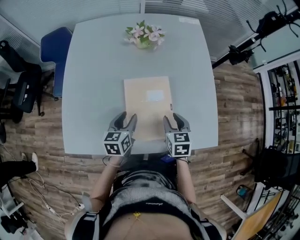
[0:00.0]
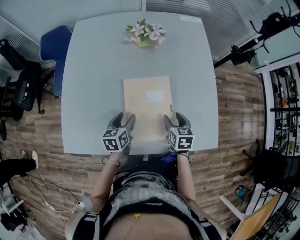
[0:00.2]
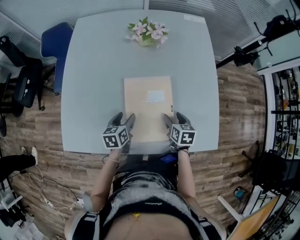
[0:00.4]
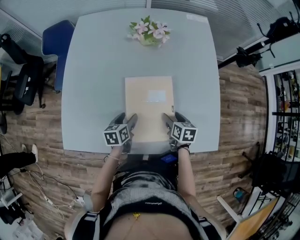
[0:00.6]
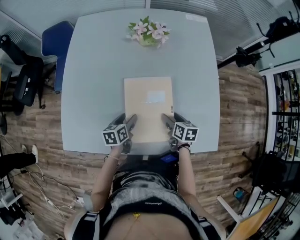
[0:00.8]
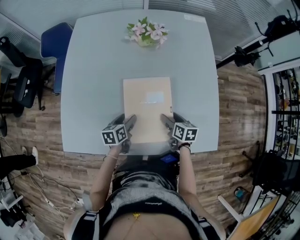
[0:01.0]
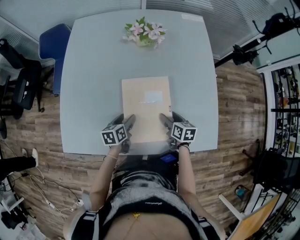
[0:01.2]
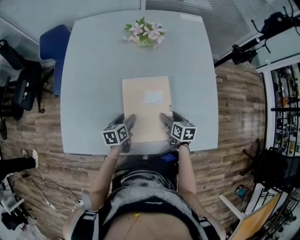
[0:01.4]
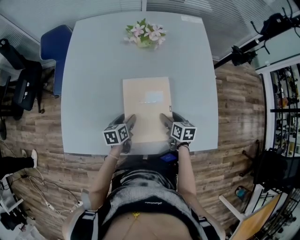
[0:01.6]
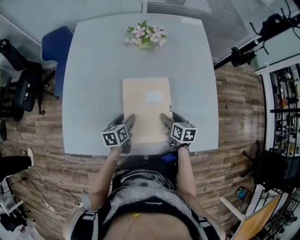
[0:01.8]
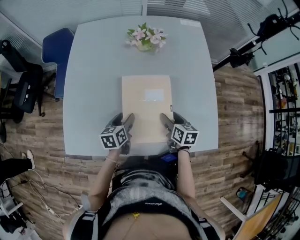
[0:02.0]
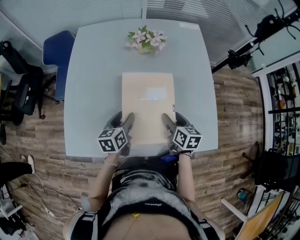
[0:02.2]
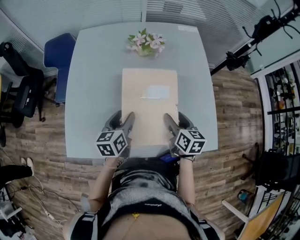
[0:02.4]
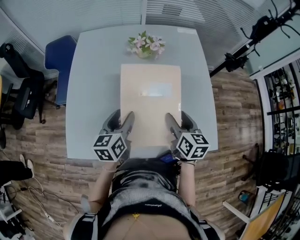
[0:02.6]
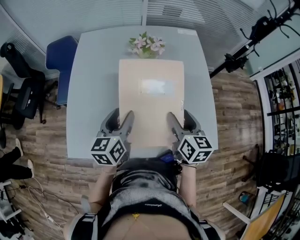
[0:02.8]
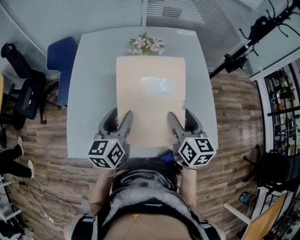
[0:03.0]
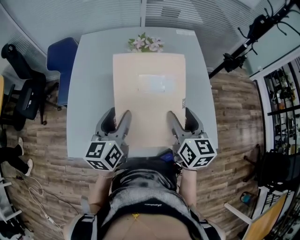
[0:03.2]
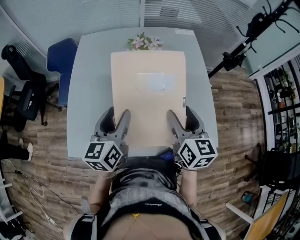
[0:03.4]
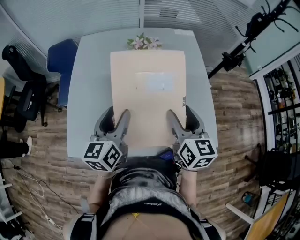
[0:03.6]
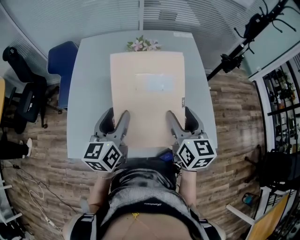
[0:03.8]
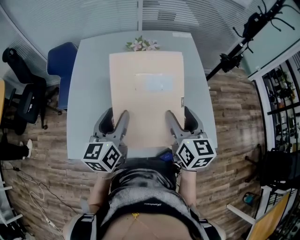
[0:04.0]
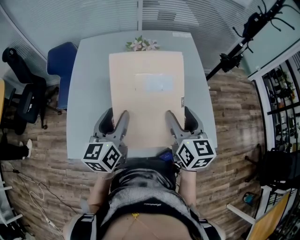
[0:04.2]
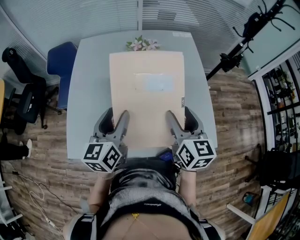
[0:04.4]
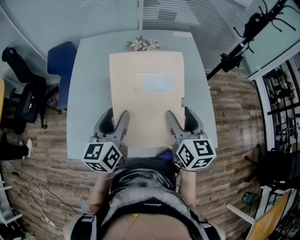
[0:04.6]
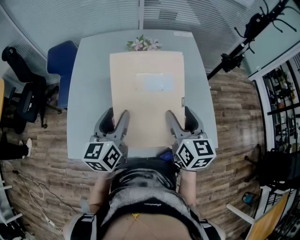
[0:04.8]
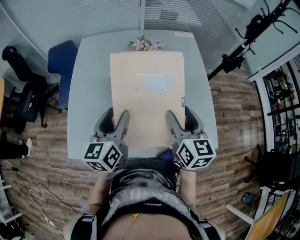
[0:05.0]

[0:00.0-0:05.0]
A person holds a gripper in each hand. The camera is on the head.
0:00.0 to 0:01.6: Both grippers move downward, some 10 cm. The right gripper turns by roughly 30 degrees, and opens.
0:01.6 to 0:03.4: The grippers both shift upward by some 30 cm. The right gripper changes its angle by roughly 30 degrees. The left gripper tilts its fingers about 30 degrees upward.
0:03.4 to 0:05.0: The two grippers keep their place.

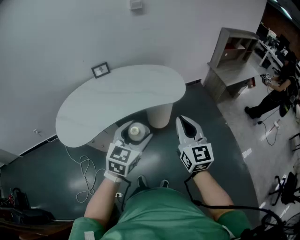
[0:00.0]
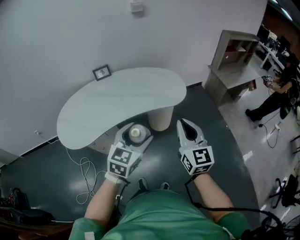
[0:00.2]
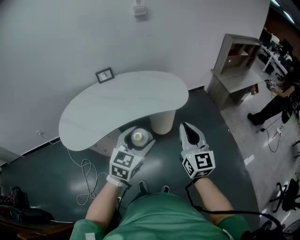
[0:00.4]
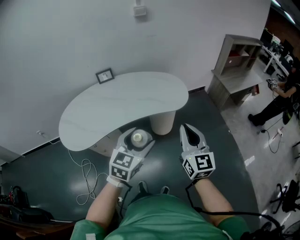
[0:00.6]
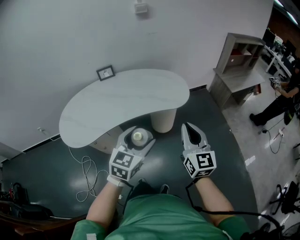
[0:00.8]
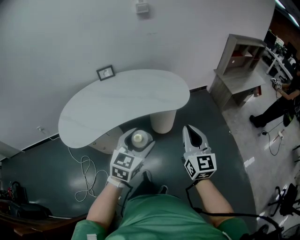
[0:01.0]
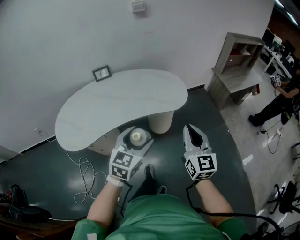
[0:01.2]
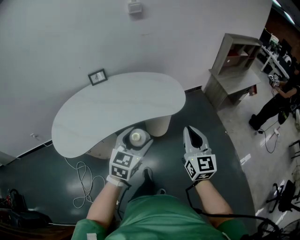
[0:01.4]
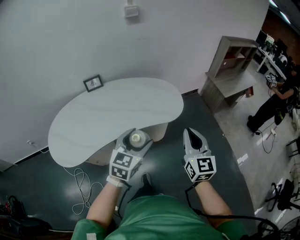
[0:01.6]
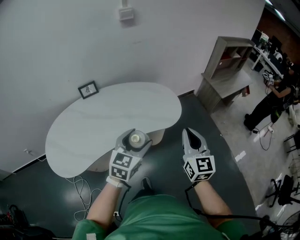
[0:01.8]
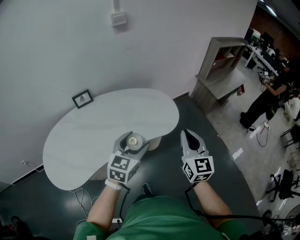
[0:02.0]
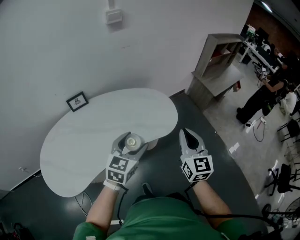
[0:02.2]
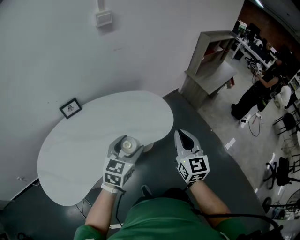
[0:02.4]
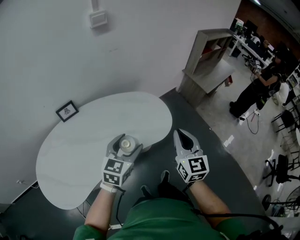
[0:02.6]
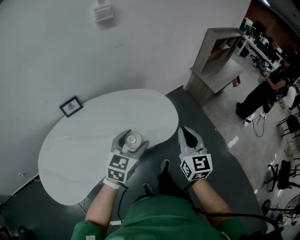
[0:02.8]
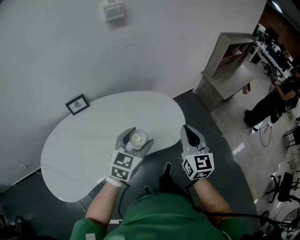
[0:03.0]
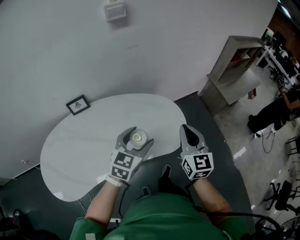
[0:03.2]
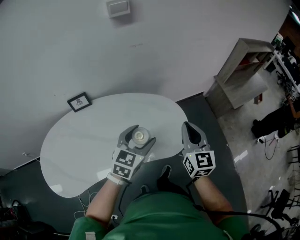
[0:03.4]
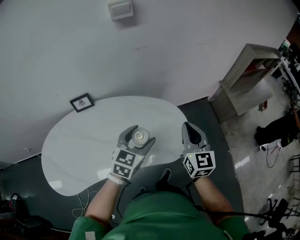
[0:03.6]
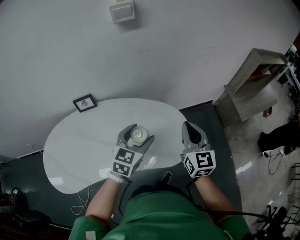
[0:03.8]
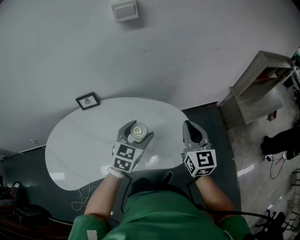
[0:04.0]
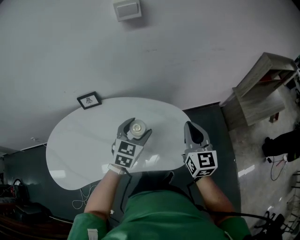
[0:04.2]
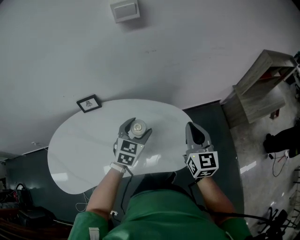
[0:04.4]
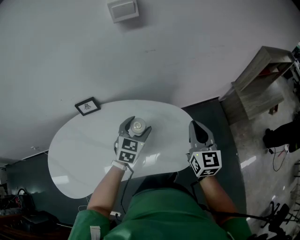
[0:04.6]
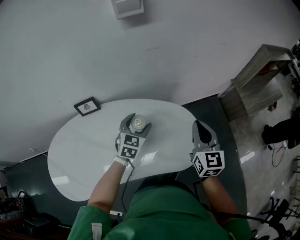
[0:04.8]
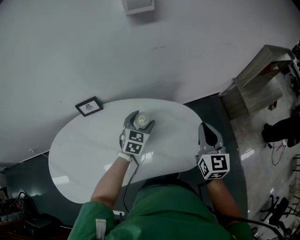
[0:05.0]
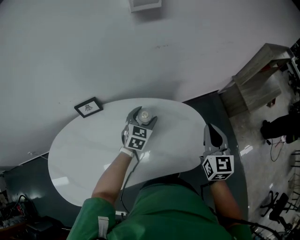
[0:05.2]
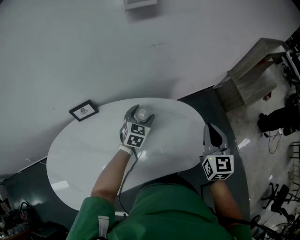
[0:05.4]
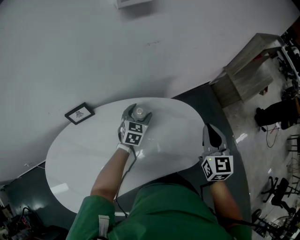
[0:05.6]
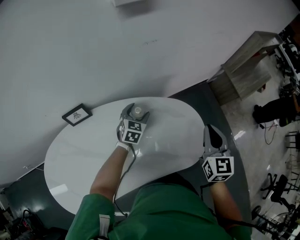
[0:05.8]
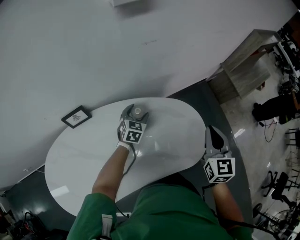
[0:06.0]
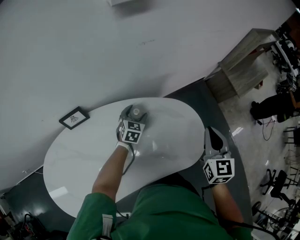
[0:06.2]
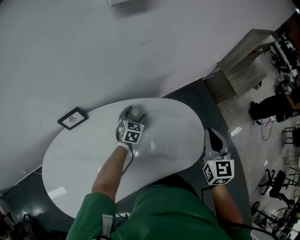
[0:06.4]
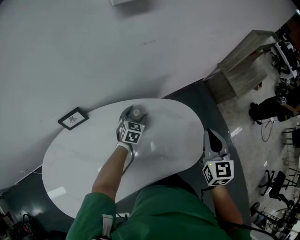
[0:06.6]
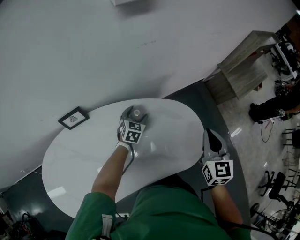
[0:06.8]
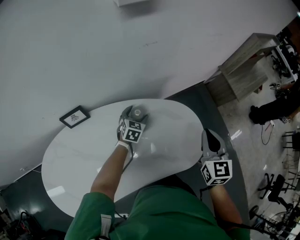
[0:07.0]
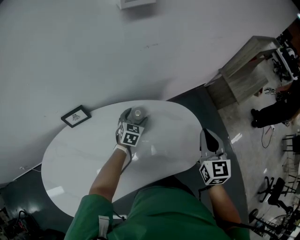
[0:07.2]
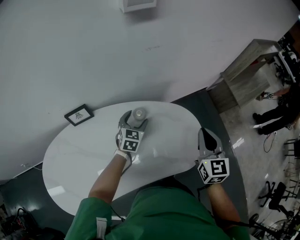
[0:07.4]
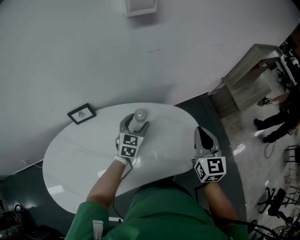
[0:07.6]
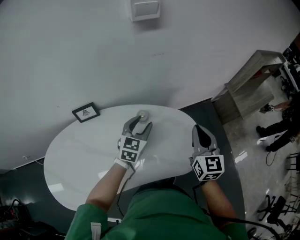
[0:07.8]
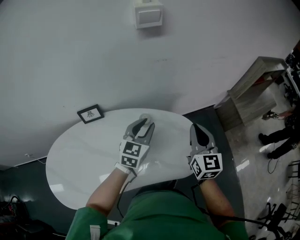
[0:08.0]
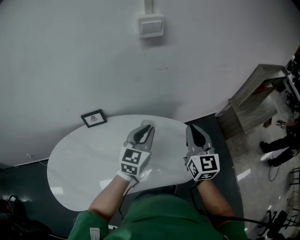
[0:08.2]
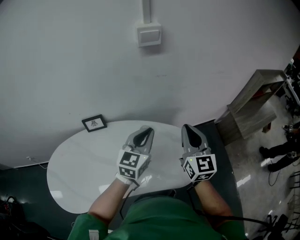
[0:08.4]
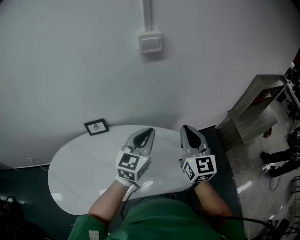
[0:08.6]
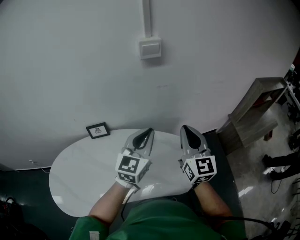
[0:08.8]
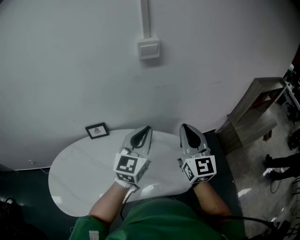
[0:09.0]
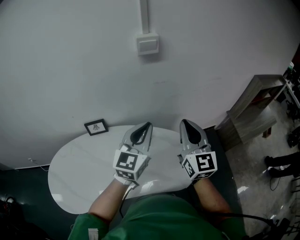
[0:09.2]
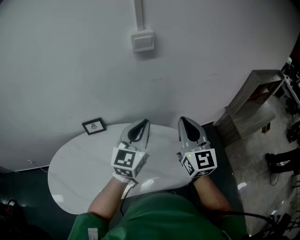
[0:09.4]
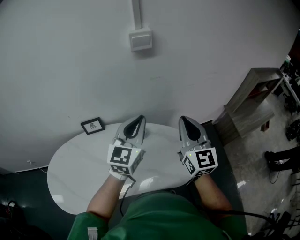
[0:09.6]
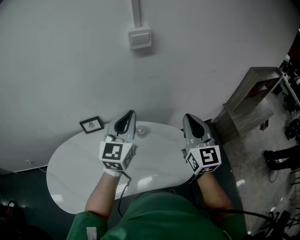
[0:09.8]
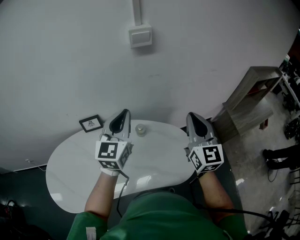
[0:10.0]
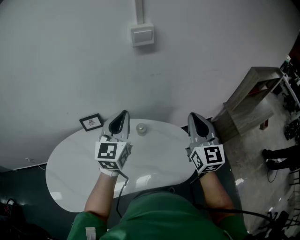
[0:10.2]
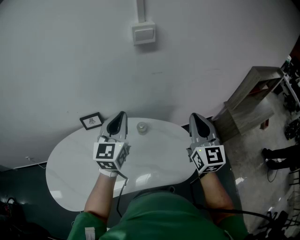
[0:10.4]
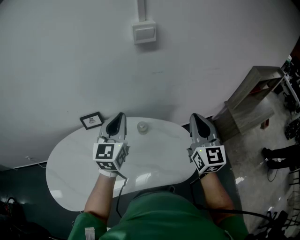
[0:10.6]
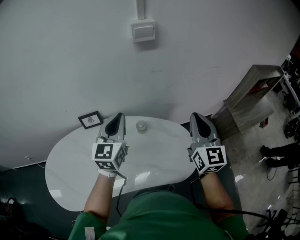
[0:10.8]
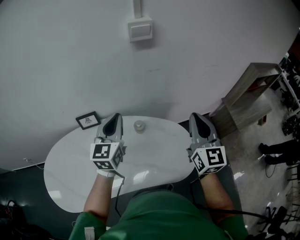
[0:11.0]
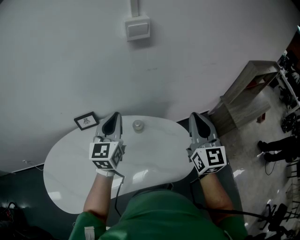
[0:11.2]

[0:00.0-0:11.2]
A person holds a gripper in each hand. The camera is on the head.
0:00.0 to 0:01.6: Both grippers move forward, about 10 cm.
0:01.6 to 0:03.2: Both grippers travel together forward, about 25 cm.
0:03.2 to 0:04.8: The left gripper travels forward, downward and to the left by about 25 cm. The right gripper goes approximately 15 cm forward.
0:04.8 to 0:06.4: The left gripper shifts about 20 cm downward and forward.
0:06.4 to 0:08.0: The left gripper goes some 25 cm upward and backward, swivels about 20 degrees, and closes up; the right gripper shifts approximately 10 cm upward and to the left.
0:08.0 to 0:09.6: The two grippers go about 15 cm upward.
0:09.6 to 0:11.2: The left gripper goes roughly 10 cm to the left.

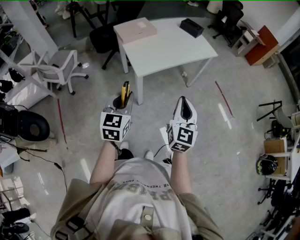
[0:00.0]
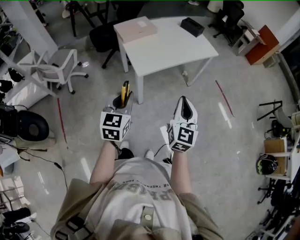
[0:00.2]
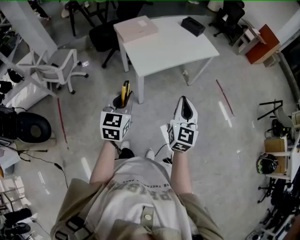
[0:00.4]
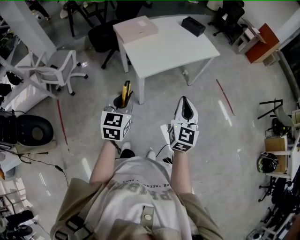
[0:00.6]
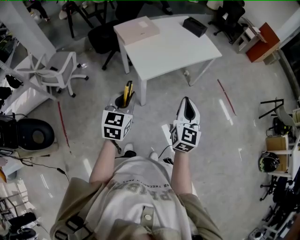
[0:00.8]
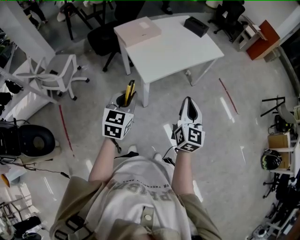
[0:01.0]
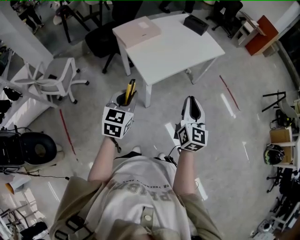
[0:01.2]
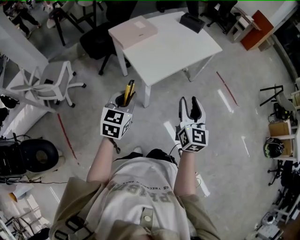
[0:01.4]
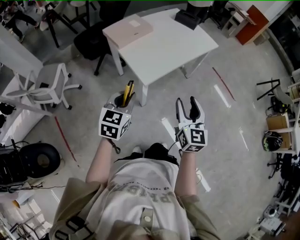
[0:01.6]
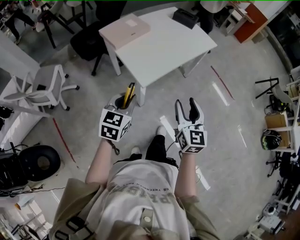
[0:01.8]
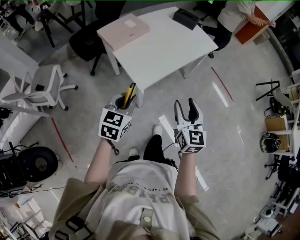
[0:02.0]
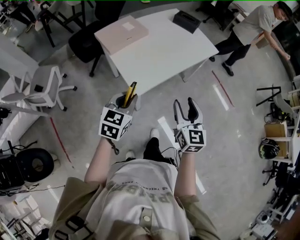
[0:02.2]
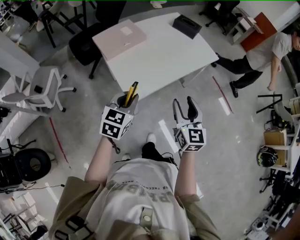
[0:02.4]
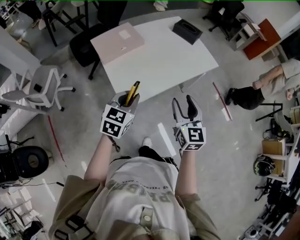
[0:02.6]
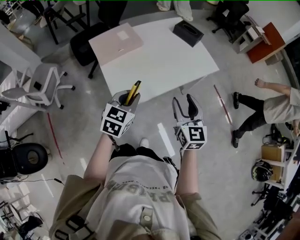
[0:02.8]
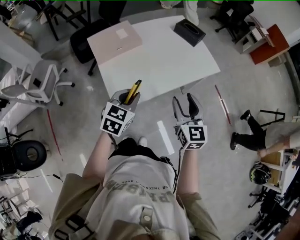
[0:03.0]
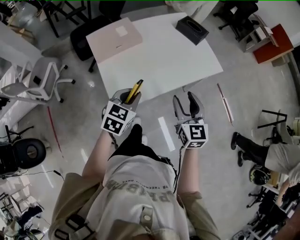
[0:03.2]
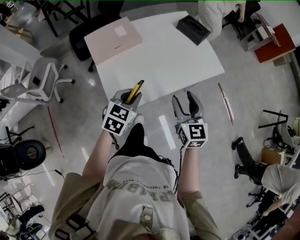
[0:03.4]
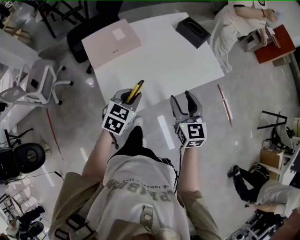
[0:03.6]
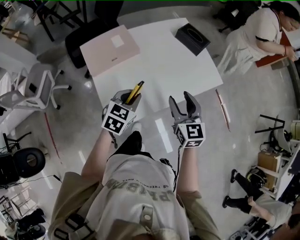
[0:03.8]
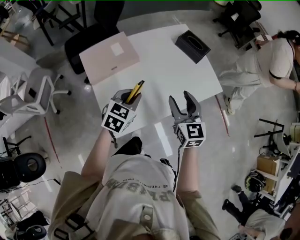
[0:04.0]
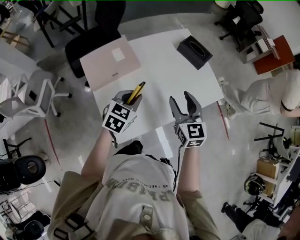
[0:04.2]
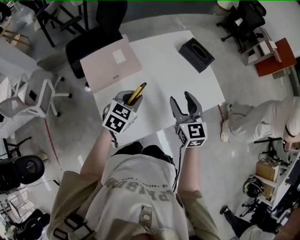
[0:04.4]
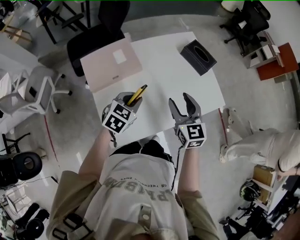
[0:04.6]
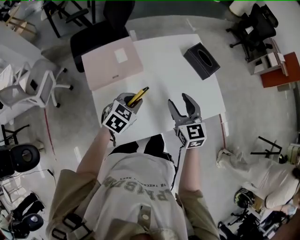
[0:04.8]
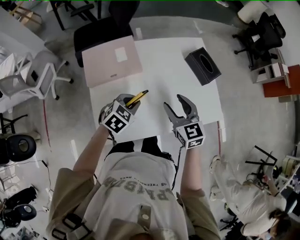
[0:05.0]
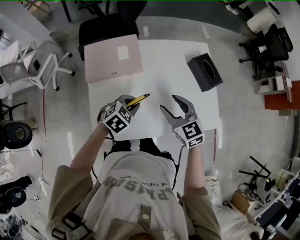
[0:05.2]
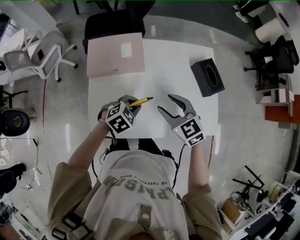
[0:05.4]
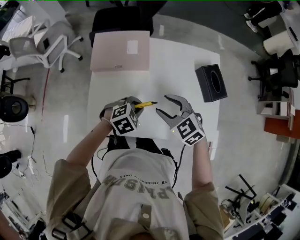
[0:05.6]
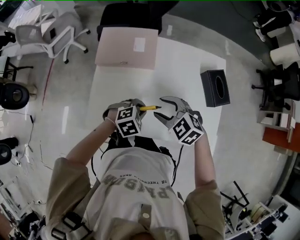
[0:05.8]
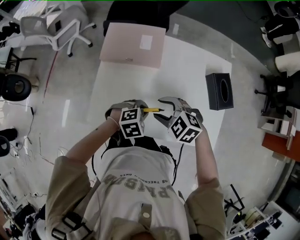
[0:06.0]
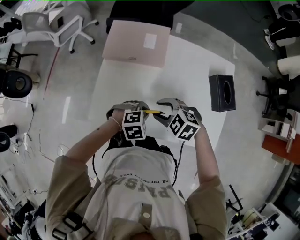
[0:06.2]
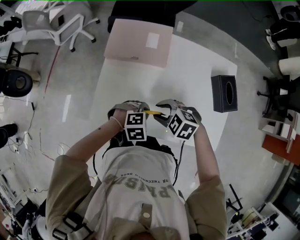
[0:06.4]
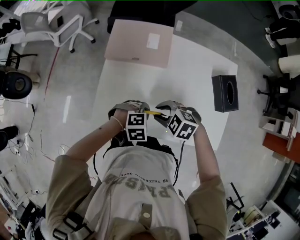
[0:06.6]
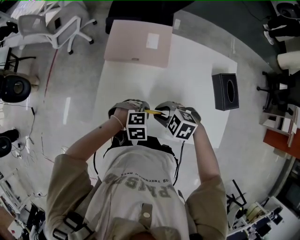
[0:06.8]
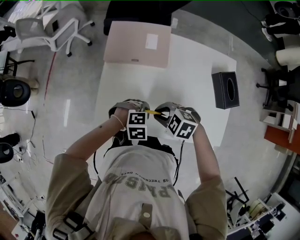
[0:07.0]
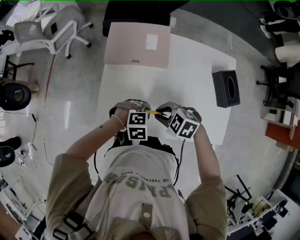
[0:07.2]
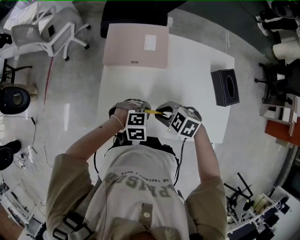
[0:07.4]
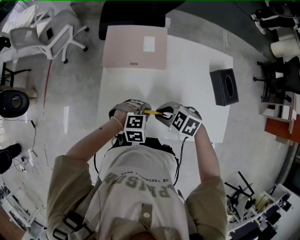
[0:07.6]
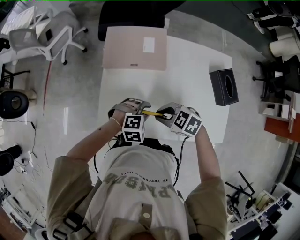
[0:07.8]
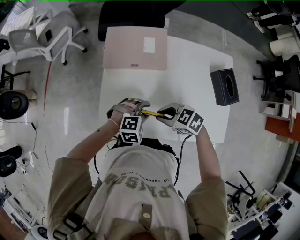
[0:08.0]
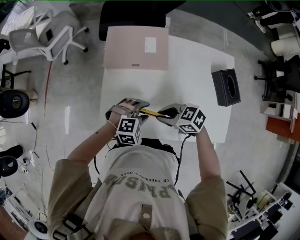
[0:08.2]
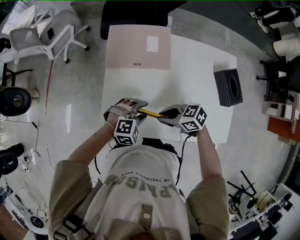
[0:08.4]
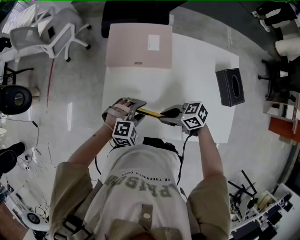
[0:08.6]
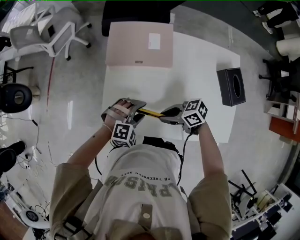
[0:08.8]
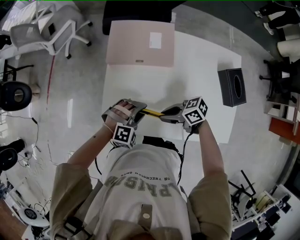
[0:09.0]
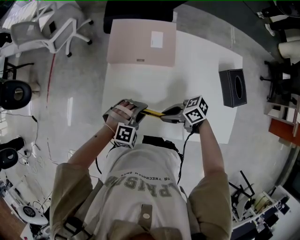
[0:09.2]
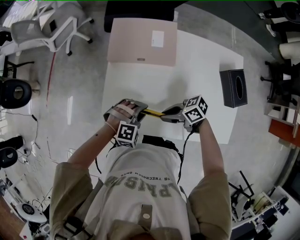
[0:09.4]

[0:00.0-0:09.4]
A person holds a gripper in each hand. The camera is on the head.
0:00.0 to 0:01.6: The right gripper travels to the left and forward by roughly 15 cm, and opens. Meanwhile the left gripper goes approximately 15 cm forward and to the left, and swivels about 20 degrees.
0:01.6 to 0:03.2: The left gripper goes about 30 cm forward and to the right, while the right gripper heads forward, covering approximately 30 cm, and rotates roughly 20 degrees.
0:03.2 to 0:04.8: The two grippers go approximately 25 cm forward.
0:04.8 to 0:06.2: The grippers both shift downward by some 10 cm. The right gripper tips its fingers downward by roughly 30 degrees; the left gripper turns by roughly 20 degrees.
0:06.2 to 0:07.8: The right gripper closes up.
0:07.8 to 0:09.4: The right gripper travels downward by roughly 5 cm, and changes its angle by some 40 degrees.
